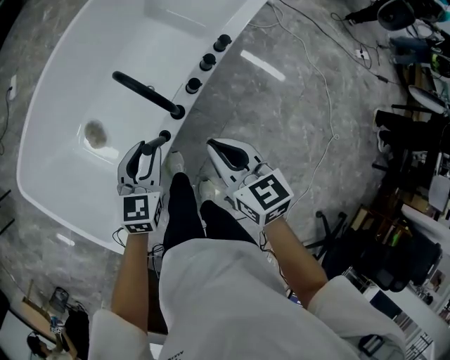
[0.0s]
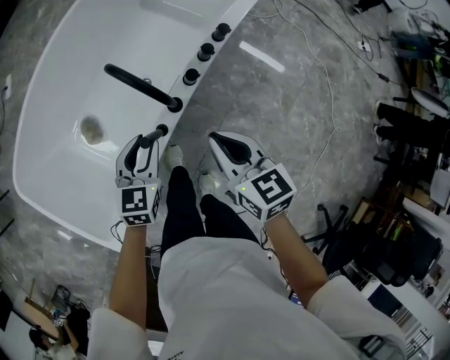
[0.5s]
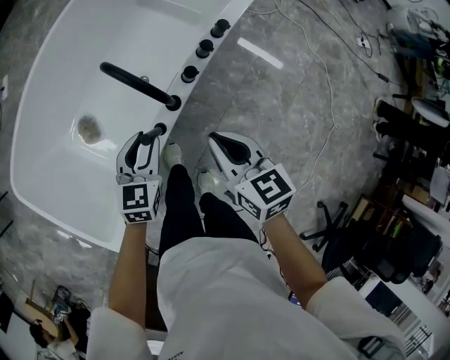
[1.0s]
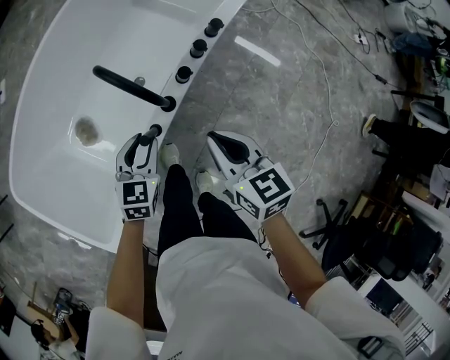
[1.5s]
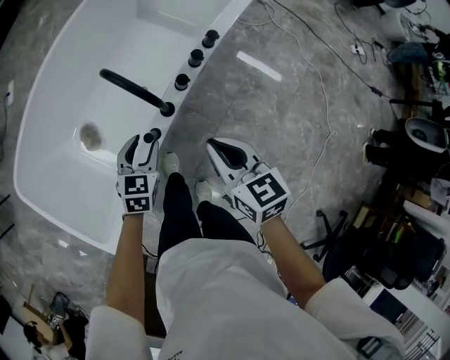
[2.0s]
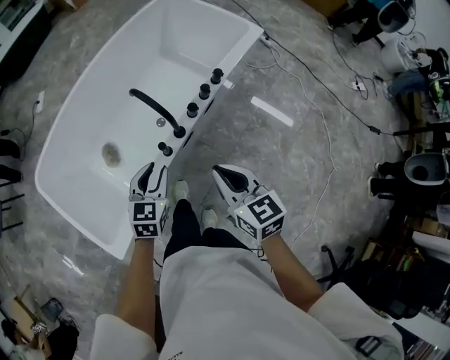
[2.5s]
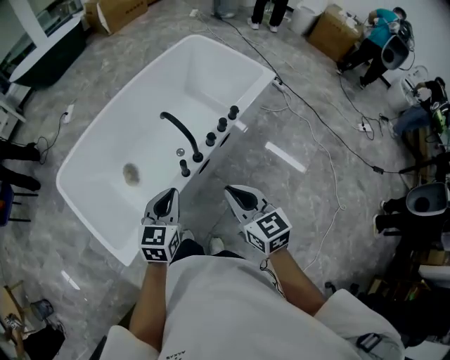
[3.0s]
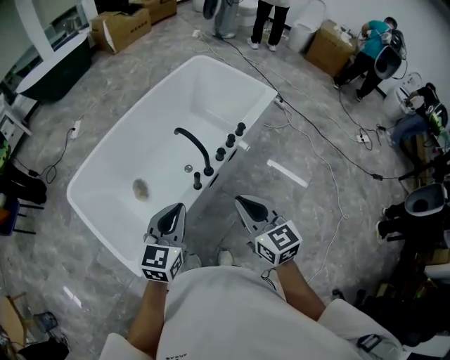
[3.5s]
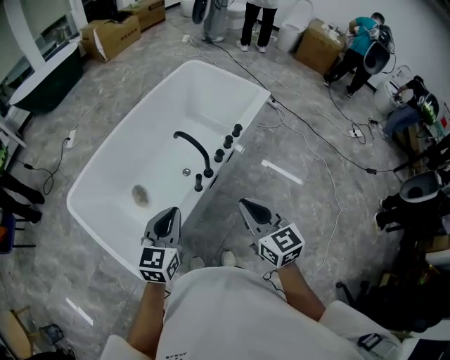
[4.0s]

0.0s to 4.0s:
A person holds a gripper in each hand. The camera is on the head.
0.0s to 2.0s: The left gripper is displaced downward by approximately 5 cm.
2.0s to 4.0s: The two grippers go approximately 25 cm upward and backward. The left gripper changes its angle by some 20 degrees, and closes.

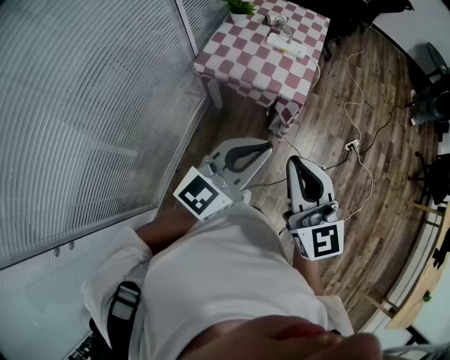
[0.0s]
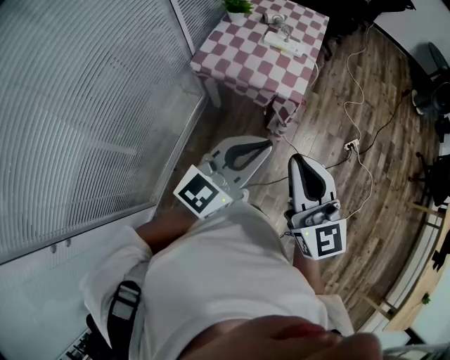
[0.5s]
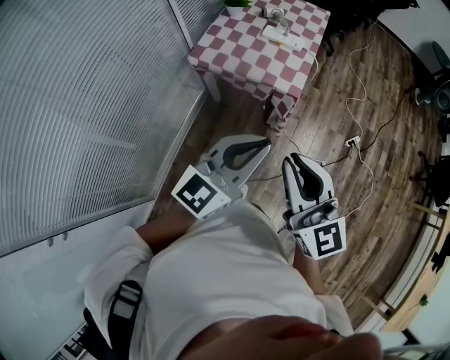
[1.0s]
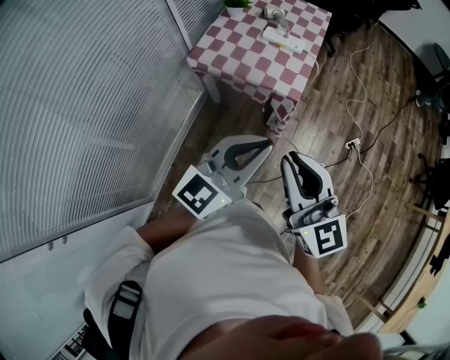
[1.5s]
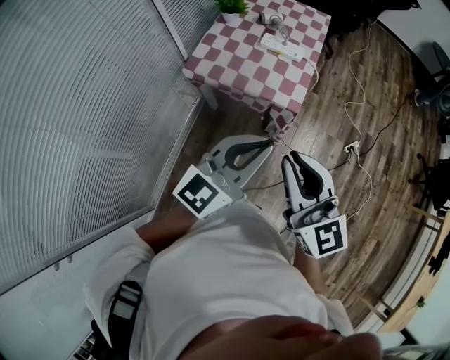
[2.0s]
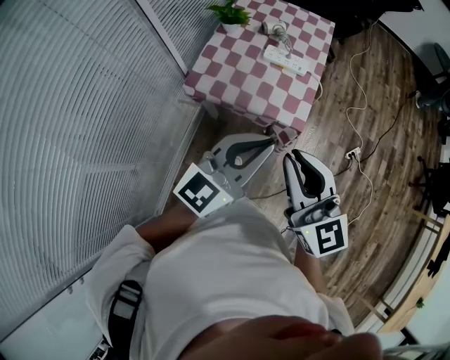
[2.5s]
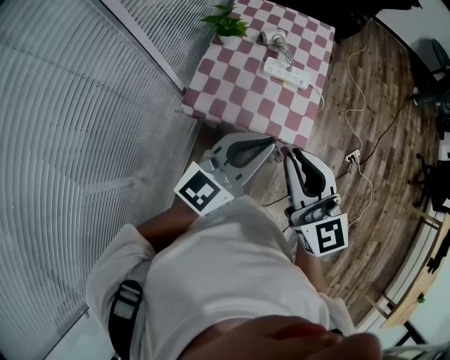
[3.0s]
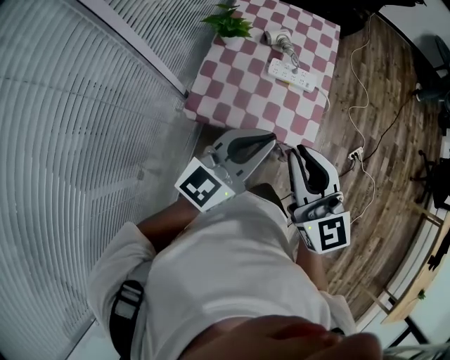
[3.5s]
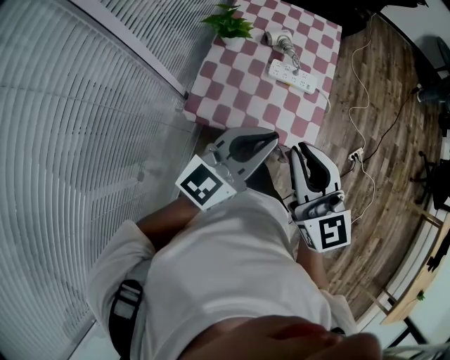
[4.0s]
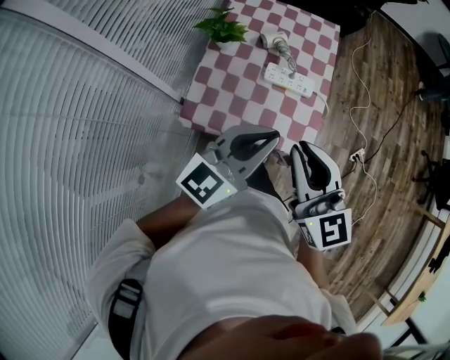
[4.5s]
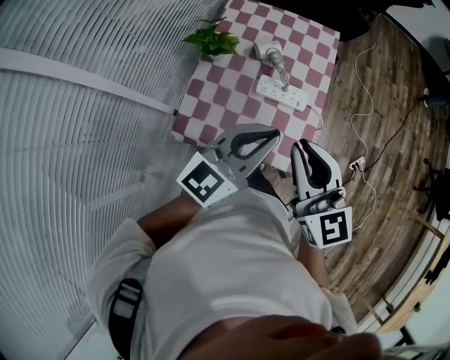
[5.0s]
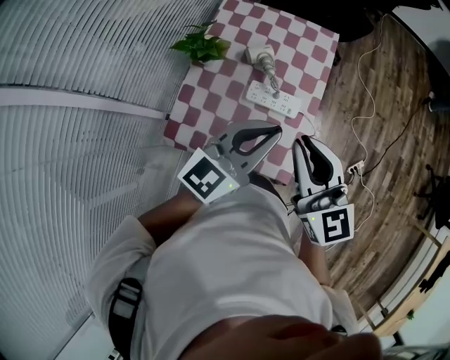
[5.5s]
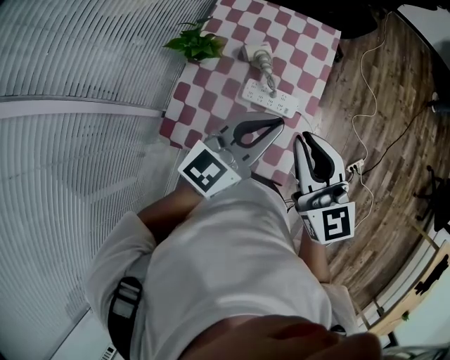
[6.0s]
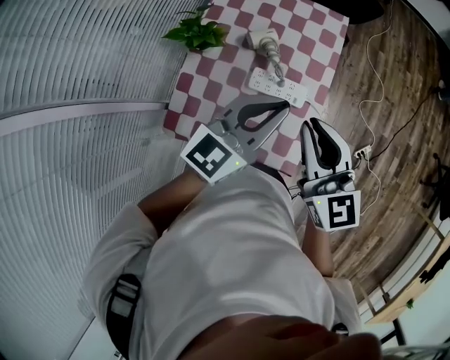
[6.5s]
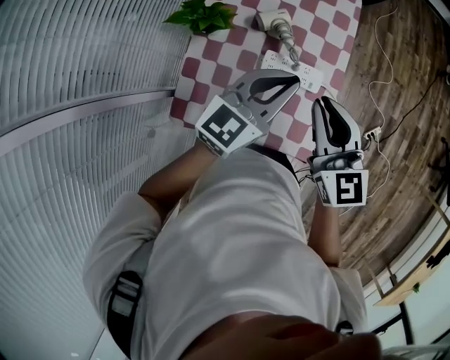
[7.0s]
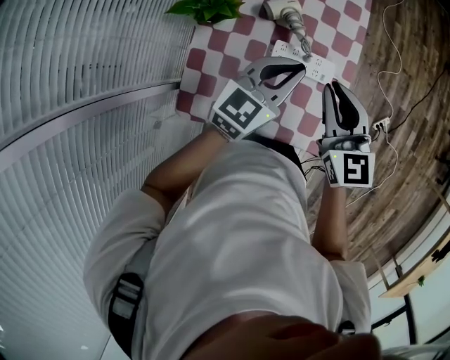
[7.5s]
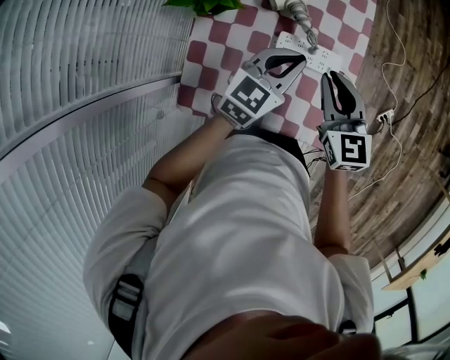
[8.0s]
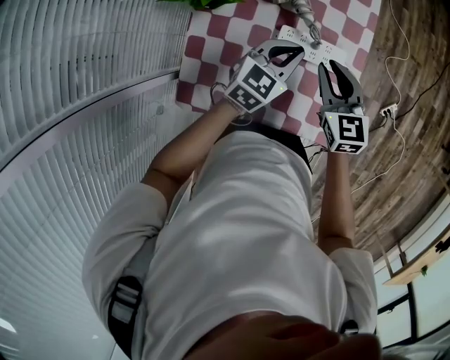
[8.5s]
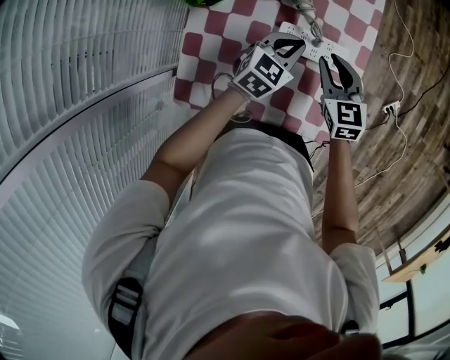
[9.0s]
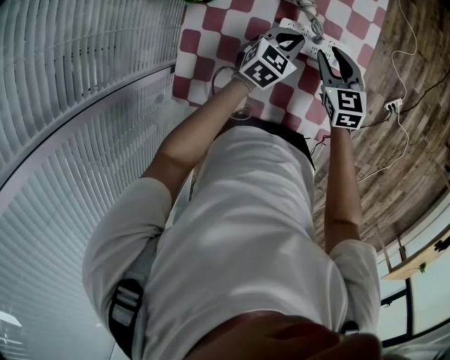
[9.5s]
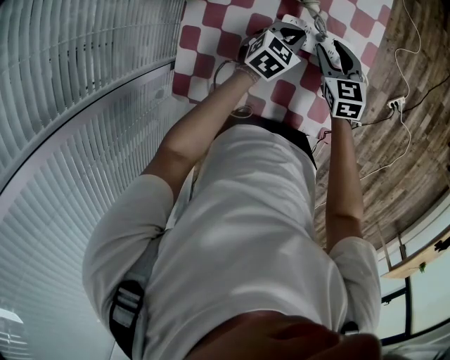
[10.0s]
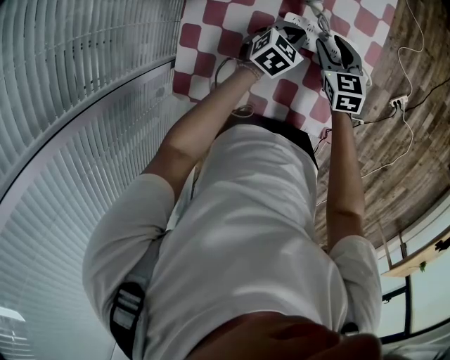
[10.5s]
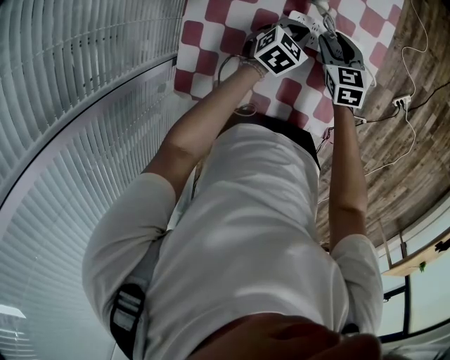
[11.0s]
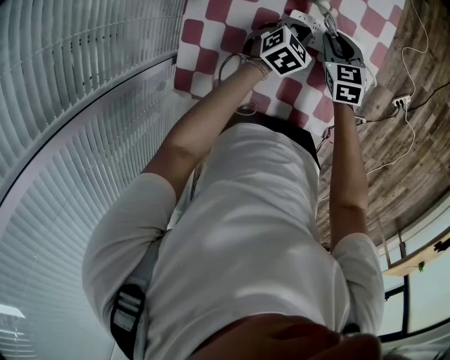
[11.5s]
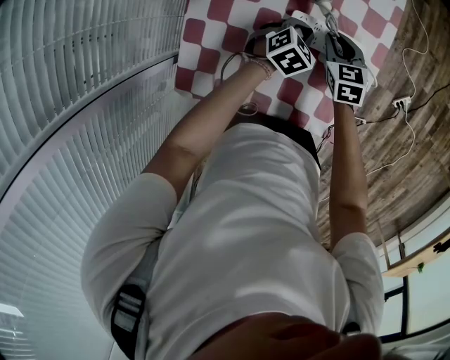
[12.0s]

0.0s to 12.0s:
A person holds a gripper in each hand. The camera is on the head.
0.0s to 2.0s: The grippers both shift forward by some 10 cm.
2.0s to 4.0s: The two grippers go roughly 30 cm forward and to the left.
4.0s to 6.0s: Both grippers travel together forward and to the right, about 25 cm.
6.0s to 8.0s: The left gripper is displaced downward and to the left by about 20 cm, while the right gripper is displaced downward by roughly 20 cm, and rotates approximately 20 degrees.
8.0s to 10.0s: The grippers both shift downward by roughly 15 cm. The left gripper rotates about 20 degrees. Meanwhile the right gripper opens up.
10.0s to 12.0s: The grippers make only small movements.

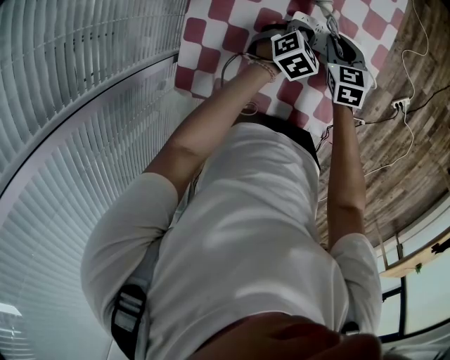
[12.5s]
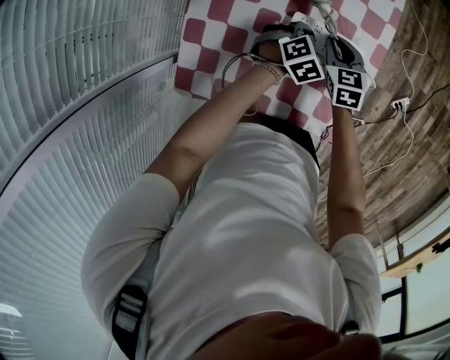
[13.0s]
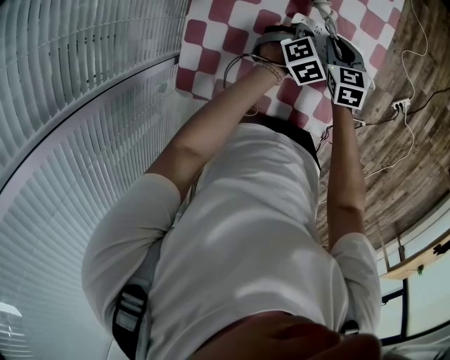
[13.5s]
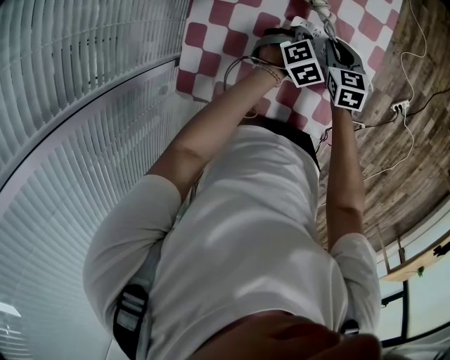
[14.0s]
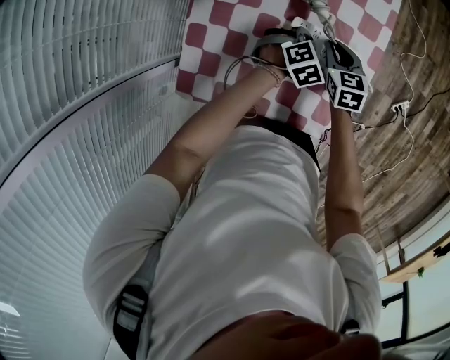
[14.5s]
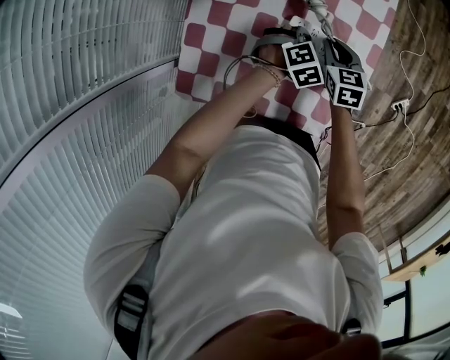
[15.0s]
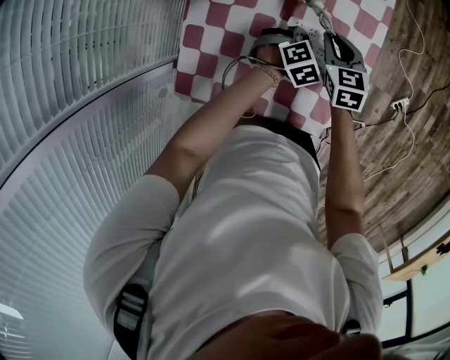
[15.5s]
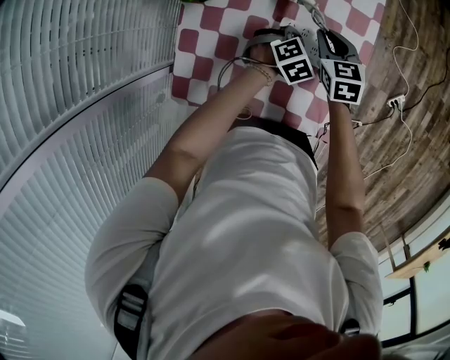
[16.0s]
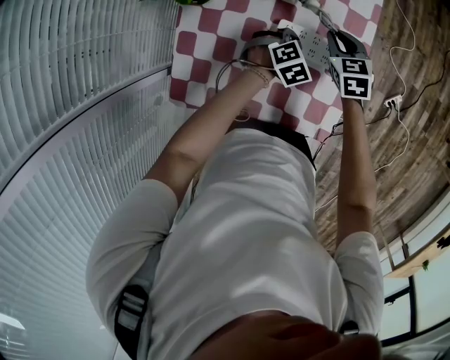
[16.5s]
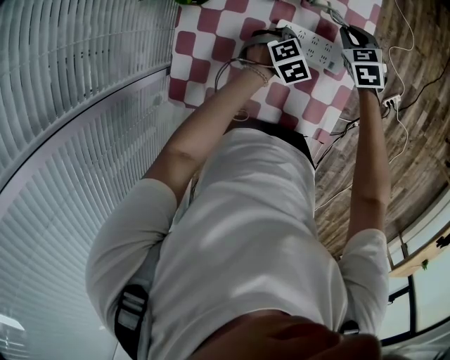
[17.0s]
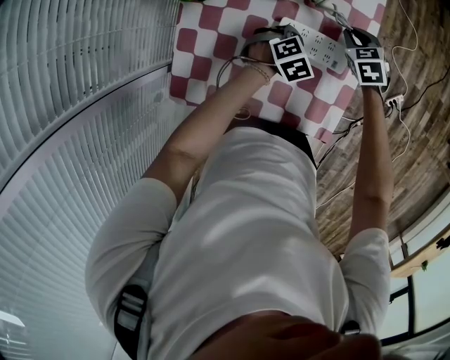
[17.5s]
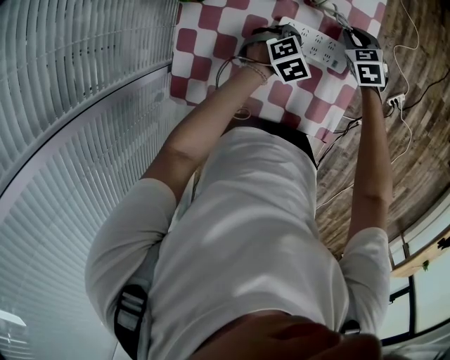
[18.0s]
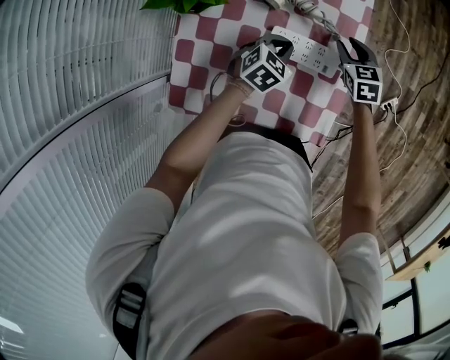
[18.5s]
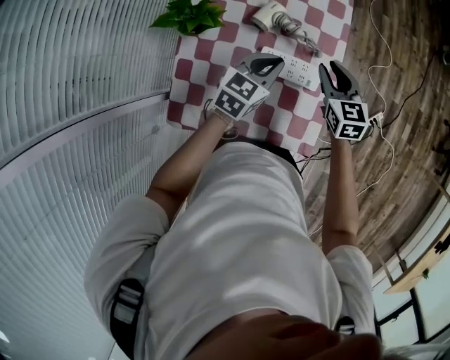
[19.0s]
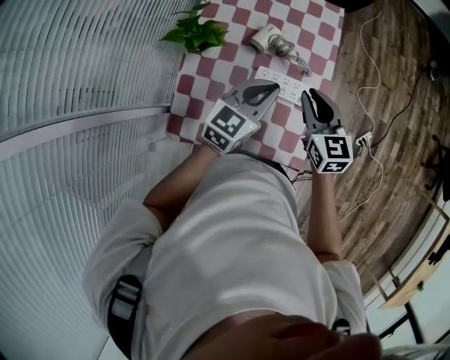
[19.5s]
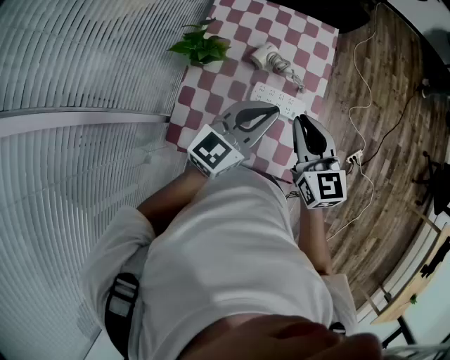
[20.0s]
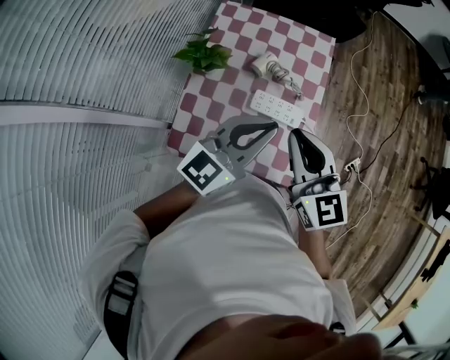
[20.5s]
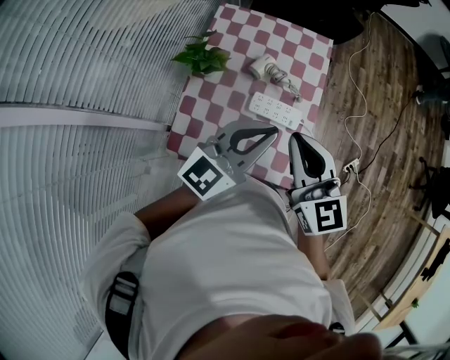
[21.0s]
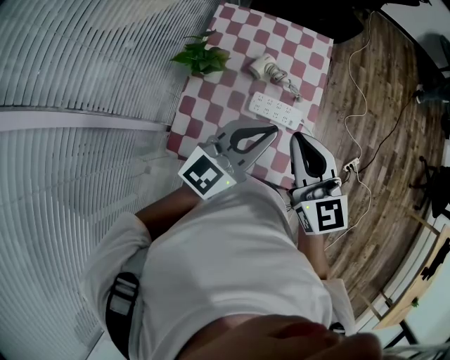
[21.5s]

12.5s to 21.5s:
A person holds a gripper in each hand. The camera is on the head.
12.5s to 14.5s: The grippers make only small movements.
14.5s to 17.0s: The right gripper goes about 10 cm forward and to the right, and swivels approximately 20 degrees.
17.0s to 19.5s: The left gripper shifts some 30 cm upward, and points its fingers some 50 degrees further upward, while the right gripper shifts roughly 25 cm upward and backward, and swivels some 30 degrees.
19.5s to 21.5s: Both grippers move upward and backward, about 20 cm.

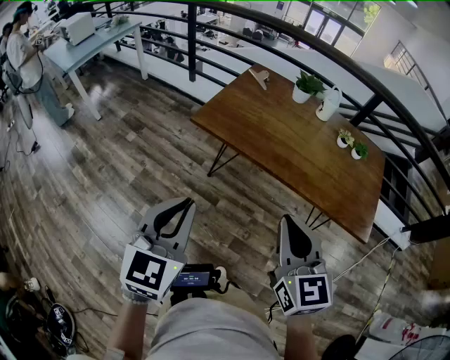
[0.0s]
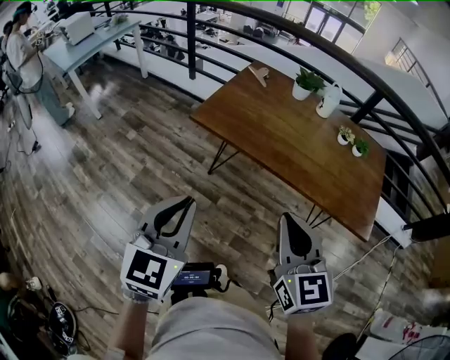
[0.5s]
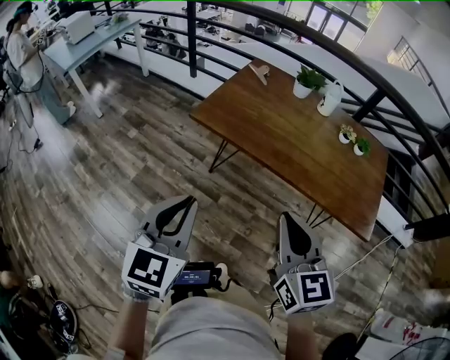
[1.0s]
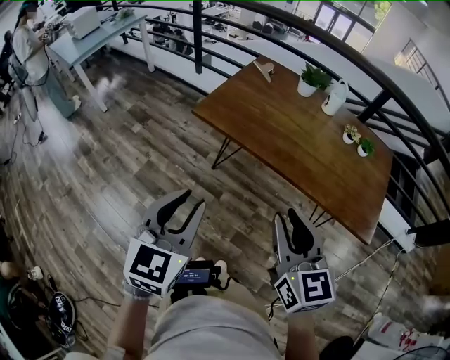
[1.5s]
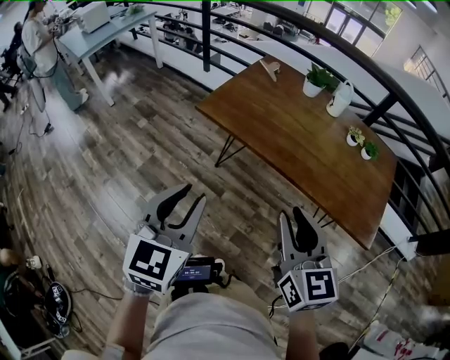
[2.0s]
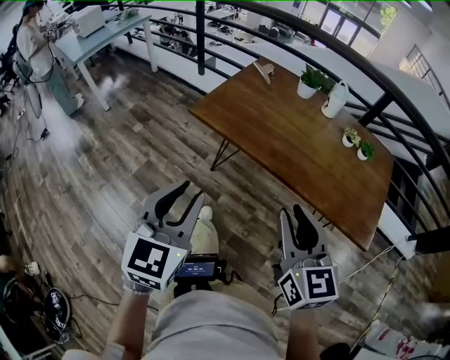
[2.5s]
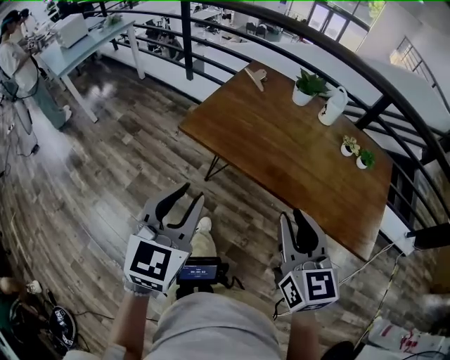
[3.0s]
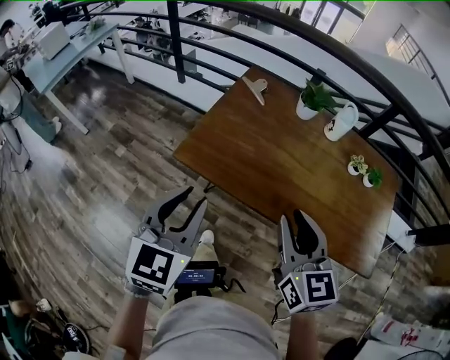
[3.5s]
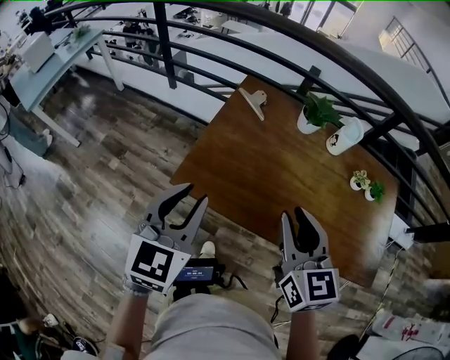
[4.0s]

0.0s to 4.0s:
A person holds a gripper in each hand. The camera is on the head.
0.0s to 2.0s: The left gripper changes place by roughly 5 cm, and opens its fingers. Meanwhile the right gripper heads to the right, covering approximately 5 cm, and opens.
2.0s to 4.0s: Both grippers travel together forward, some 35 cm.
